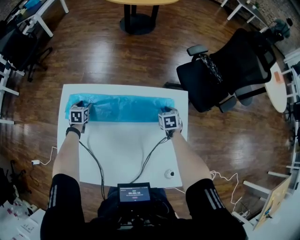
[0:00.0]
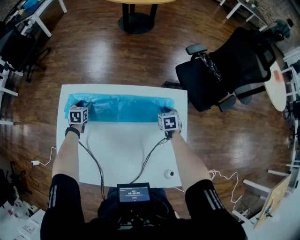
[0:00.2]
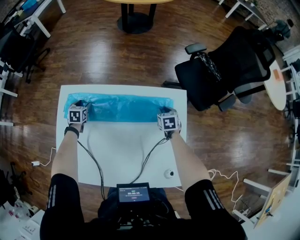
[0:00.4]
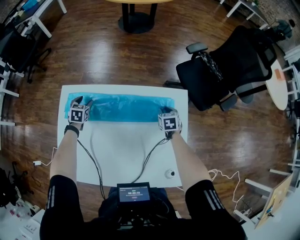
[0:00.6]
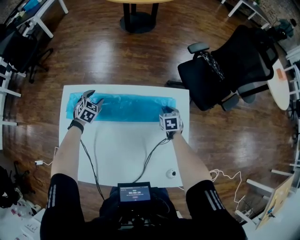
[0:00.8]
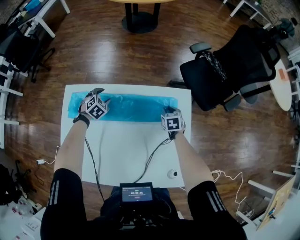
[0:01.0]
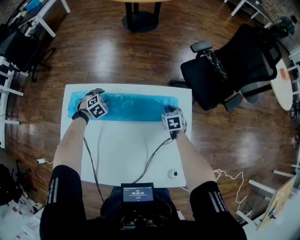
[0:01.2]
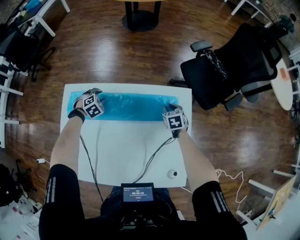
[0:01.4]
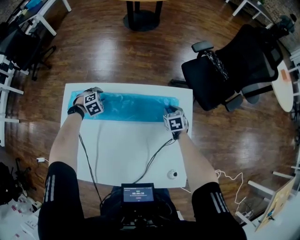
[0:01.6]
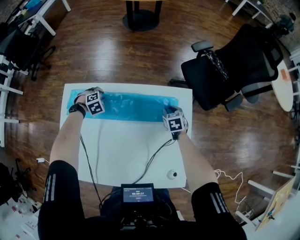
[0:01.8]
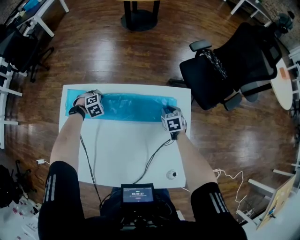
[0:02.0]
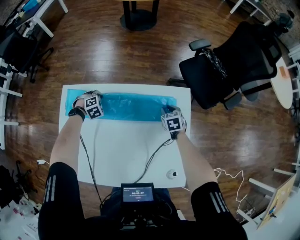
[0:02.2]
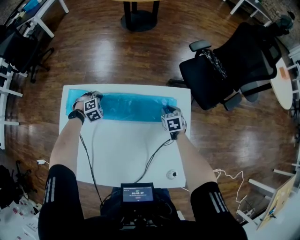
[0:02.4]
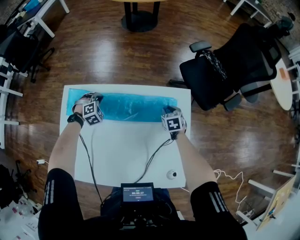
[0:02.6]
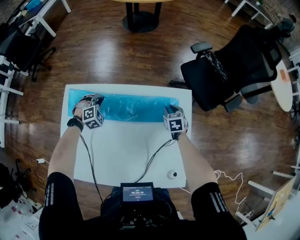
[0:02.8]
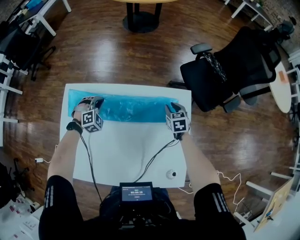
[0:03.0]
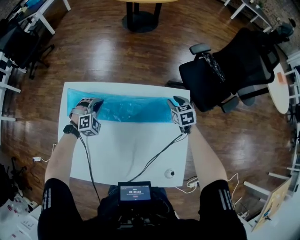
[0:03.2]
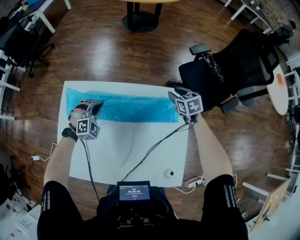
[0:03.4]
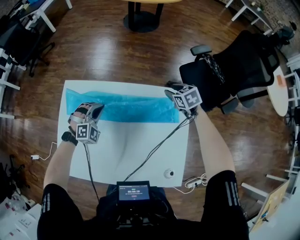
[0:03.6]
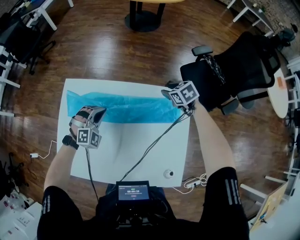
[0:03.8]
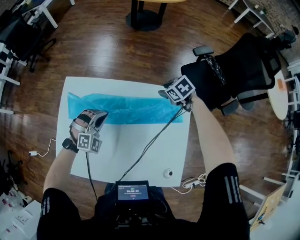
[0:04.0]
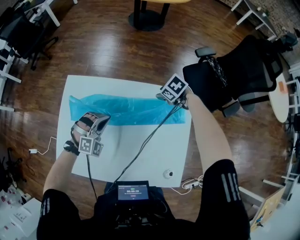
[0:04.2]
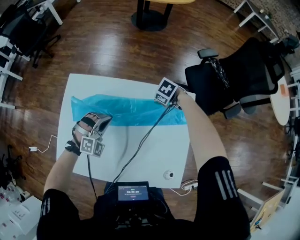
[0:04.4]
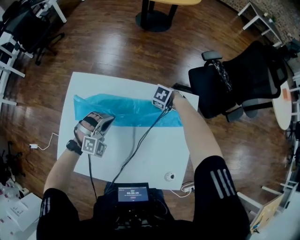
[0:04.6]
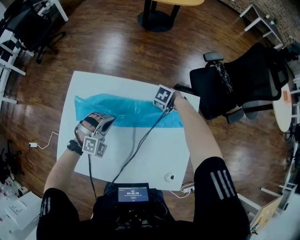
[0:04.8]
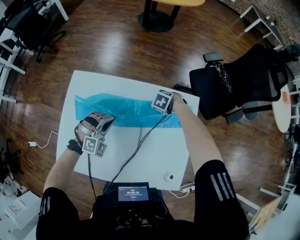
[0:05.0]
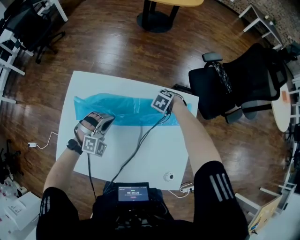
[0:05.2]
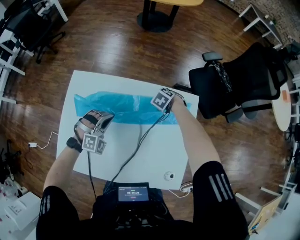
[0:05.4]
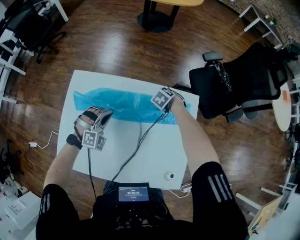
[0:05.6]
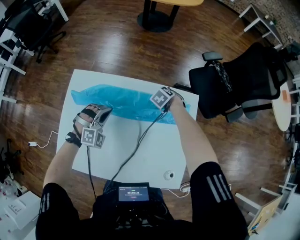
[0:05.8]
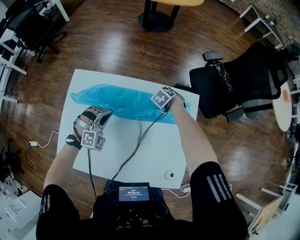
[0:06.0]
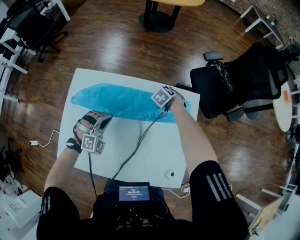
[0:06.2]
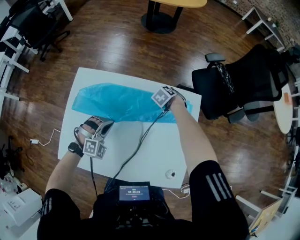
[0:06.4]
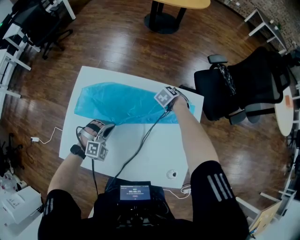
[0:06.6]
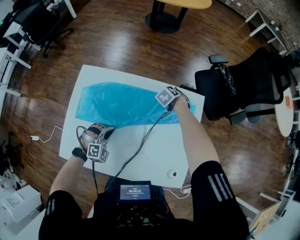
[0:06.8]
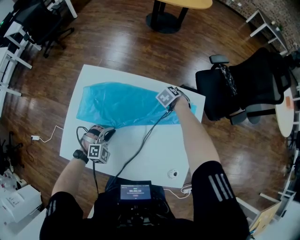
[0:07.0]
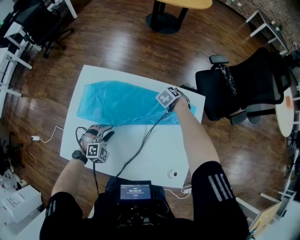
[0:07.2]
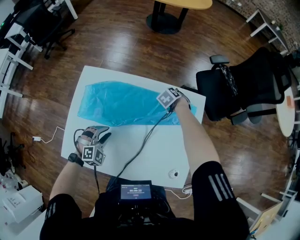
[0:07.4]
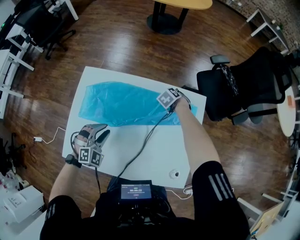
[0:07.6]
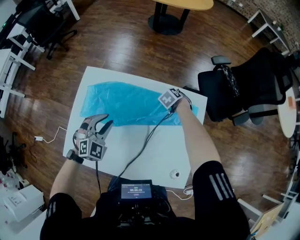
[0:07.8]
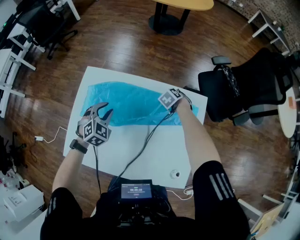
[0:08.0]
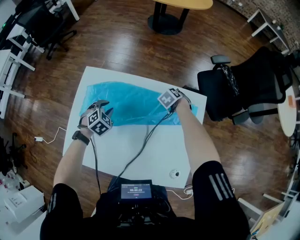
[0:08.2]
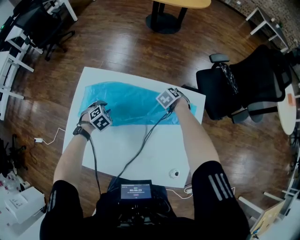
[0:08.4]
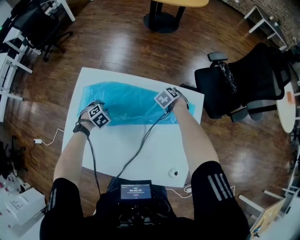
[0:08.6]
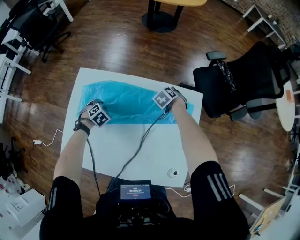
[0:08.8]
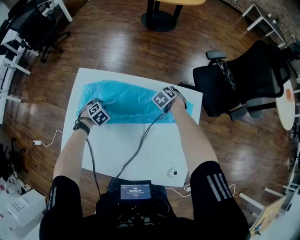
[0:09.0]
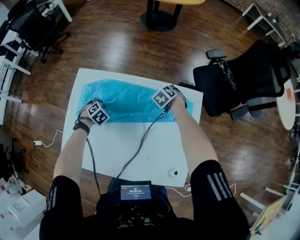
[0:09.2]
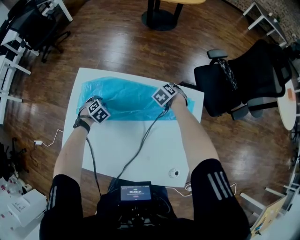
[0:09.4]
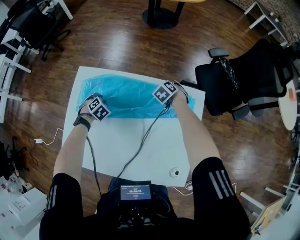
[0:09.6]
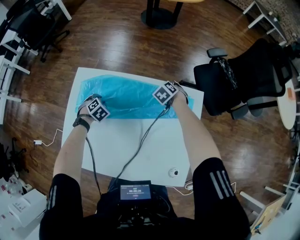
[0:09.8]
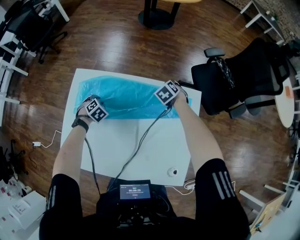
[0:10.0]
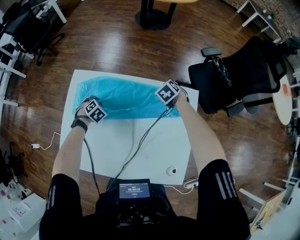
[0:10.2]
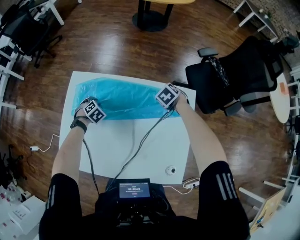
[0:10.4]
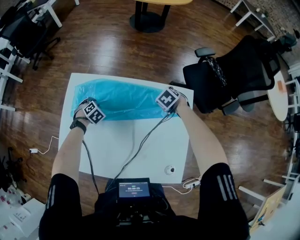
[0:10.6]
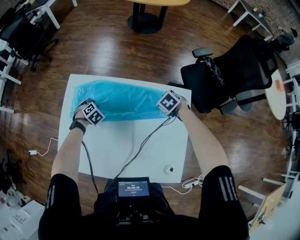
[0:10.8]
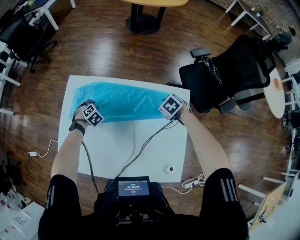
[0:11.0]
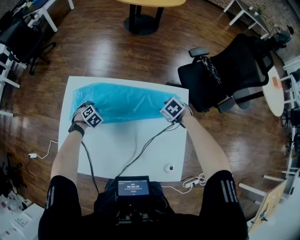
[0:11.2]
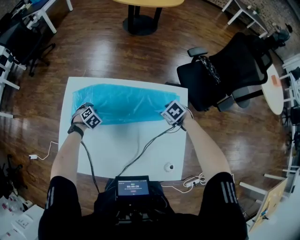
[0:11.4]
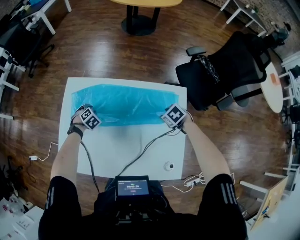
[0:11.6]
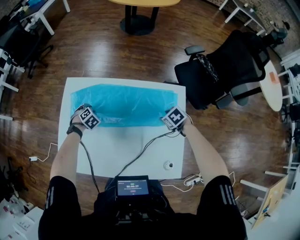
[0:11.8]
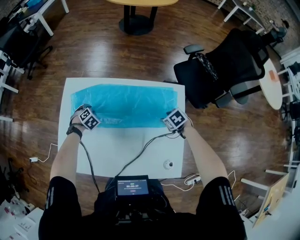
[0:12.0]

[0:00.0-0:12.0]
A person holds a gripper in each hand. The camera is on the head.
0:00.0 to 0:01.6: The left gripper changes place by some 10 cm, and rotates around the line of its fingers by roughly 60 degrees, clockwise from behind.
0:01.6 to 0:03.0: The left gripper shifts about 5 cm upward, swivels approximately 30 degrees, and closes.
0:03.0 to 0:04.4: The right gripper moves approximately 5 cm upward and comes back, and changes its angle by roughly 60 degrees. The left gripper moves about 15 cm.
0:04.4 to 0:06.0: The grippers move only a little.
0:06.0 to 0:07.6: The left gripper travels downward and back again, approximately 5 cm each way, and opens.
0:07.6 to 0:09.0: The left gripper goes about 15 cm downward, and angles its fingers downward, by roughly 30 degrees.
0:09.0 to 0:10.4: The grippers stay close to where they were, moving slightly.
0:10.4 to 0:12.0: The right gripper ends up roughly 20 cm from where it was.

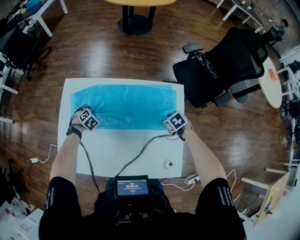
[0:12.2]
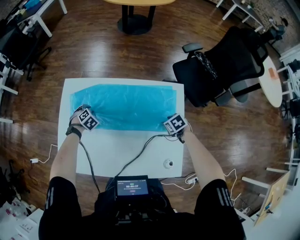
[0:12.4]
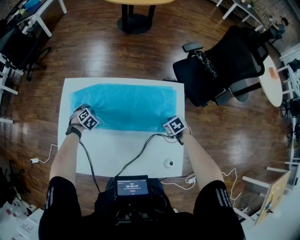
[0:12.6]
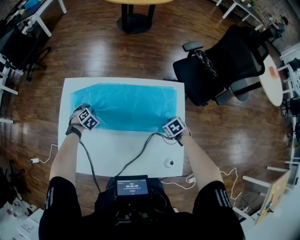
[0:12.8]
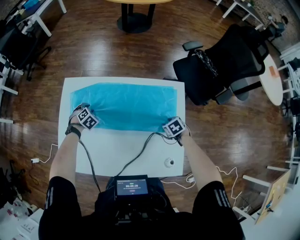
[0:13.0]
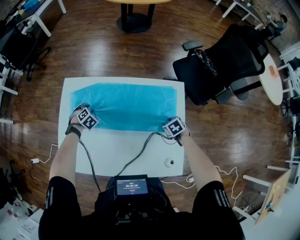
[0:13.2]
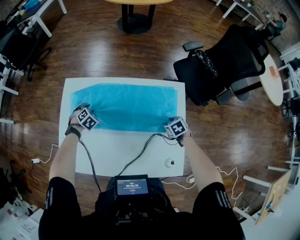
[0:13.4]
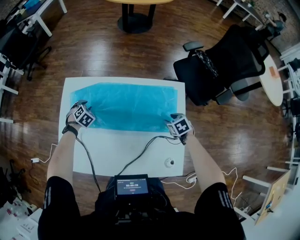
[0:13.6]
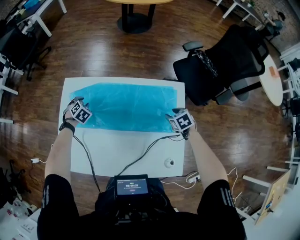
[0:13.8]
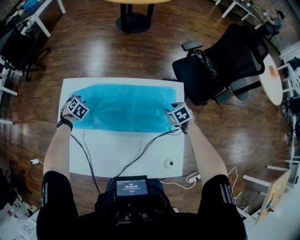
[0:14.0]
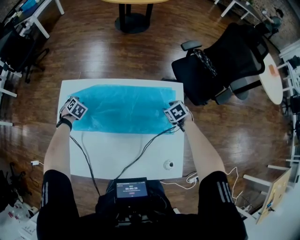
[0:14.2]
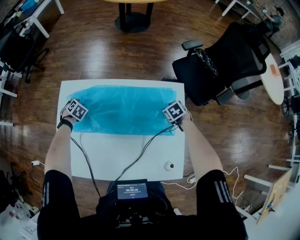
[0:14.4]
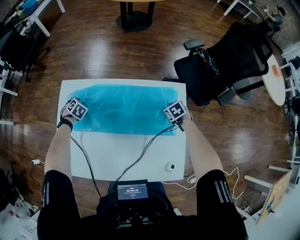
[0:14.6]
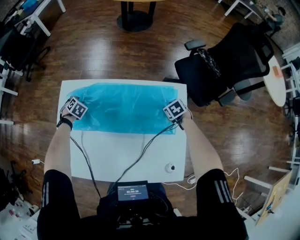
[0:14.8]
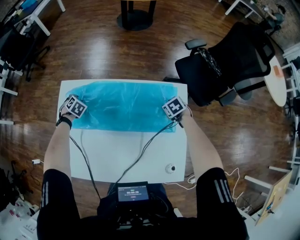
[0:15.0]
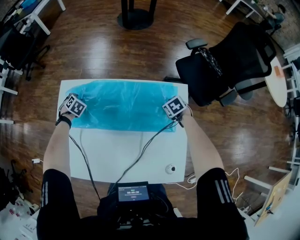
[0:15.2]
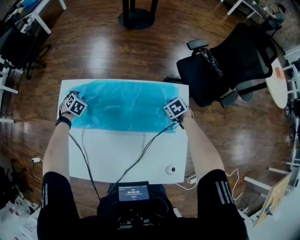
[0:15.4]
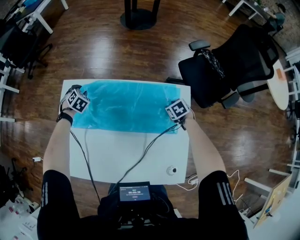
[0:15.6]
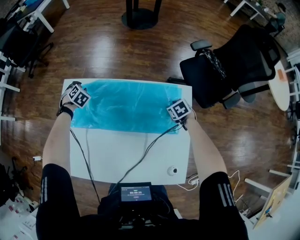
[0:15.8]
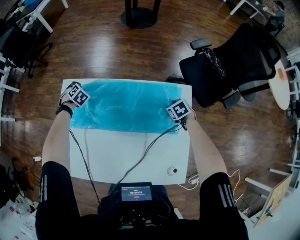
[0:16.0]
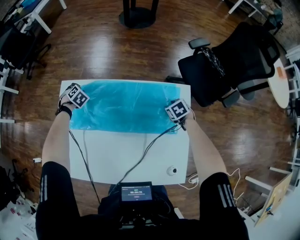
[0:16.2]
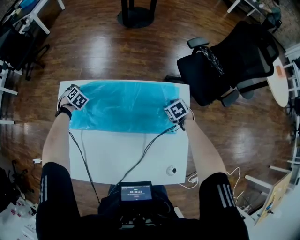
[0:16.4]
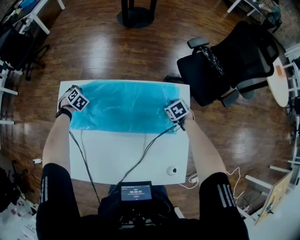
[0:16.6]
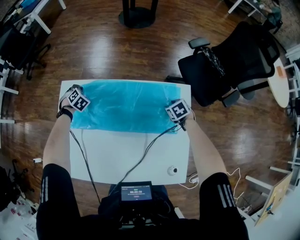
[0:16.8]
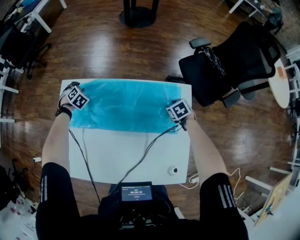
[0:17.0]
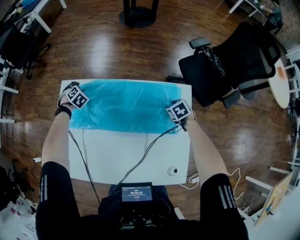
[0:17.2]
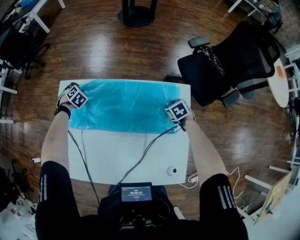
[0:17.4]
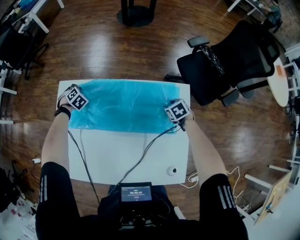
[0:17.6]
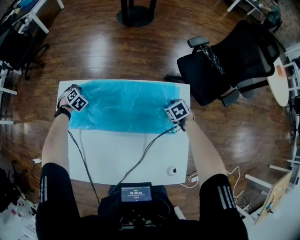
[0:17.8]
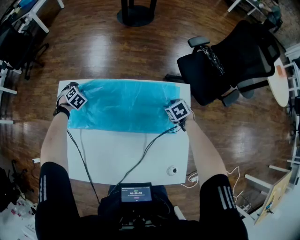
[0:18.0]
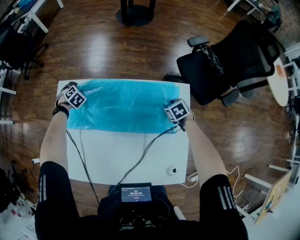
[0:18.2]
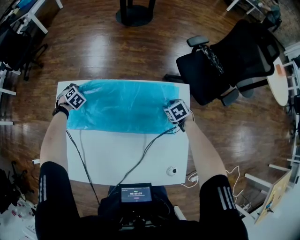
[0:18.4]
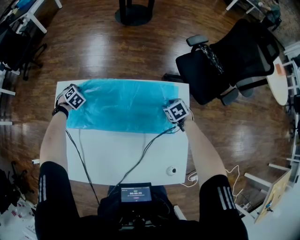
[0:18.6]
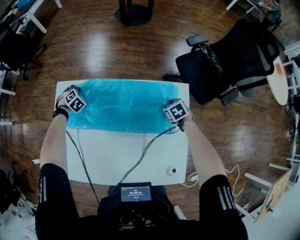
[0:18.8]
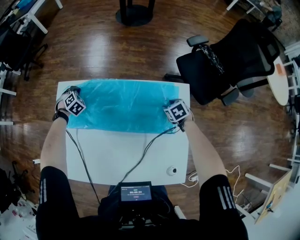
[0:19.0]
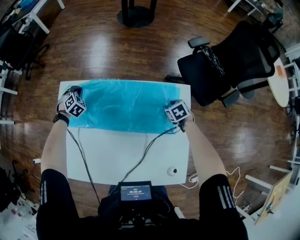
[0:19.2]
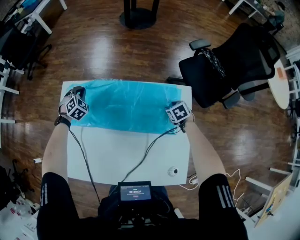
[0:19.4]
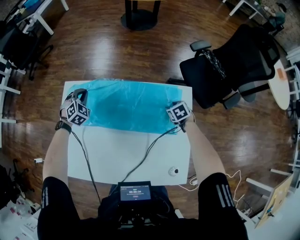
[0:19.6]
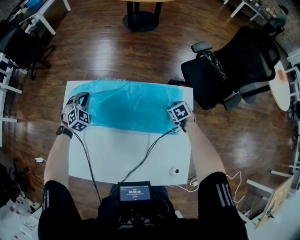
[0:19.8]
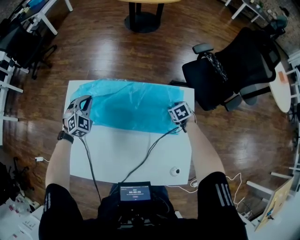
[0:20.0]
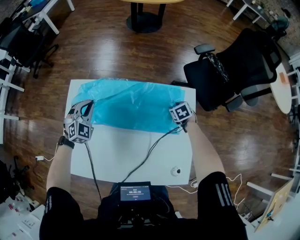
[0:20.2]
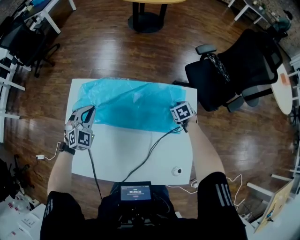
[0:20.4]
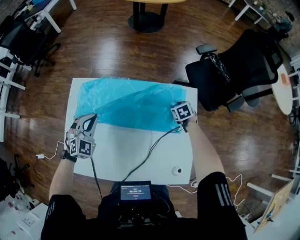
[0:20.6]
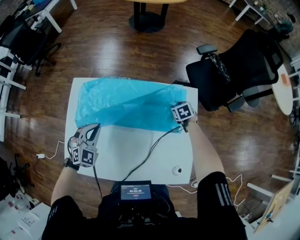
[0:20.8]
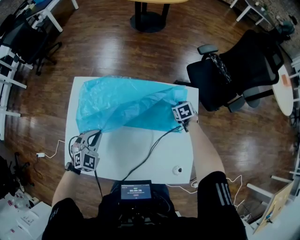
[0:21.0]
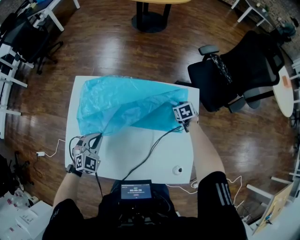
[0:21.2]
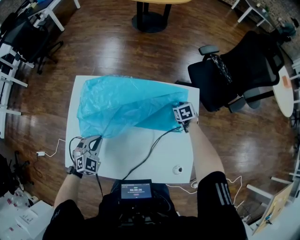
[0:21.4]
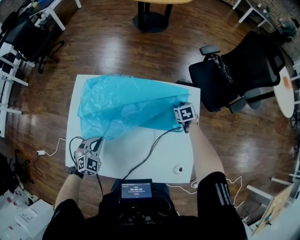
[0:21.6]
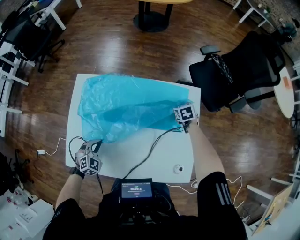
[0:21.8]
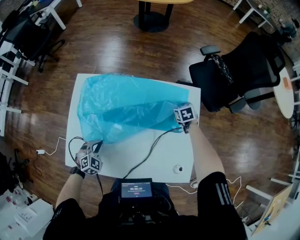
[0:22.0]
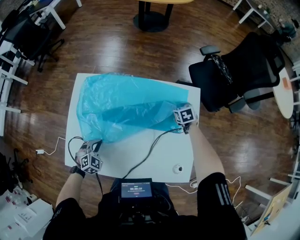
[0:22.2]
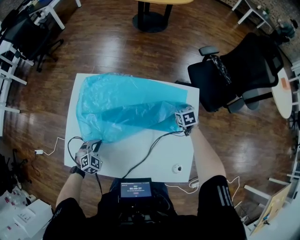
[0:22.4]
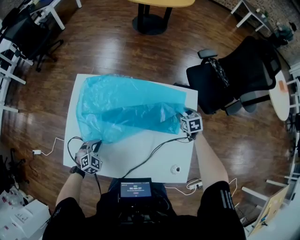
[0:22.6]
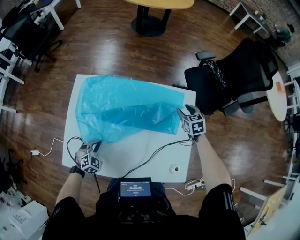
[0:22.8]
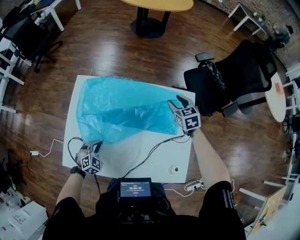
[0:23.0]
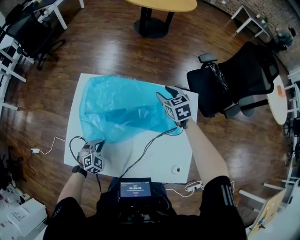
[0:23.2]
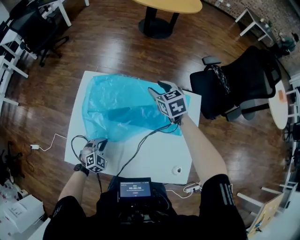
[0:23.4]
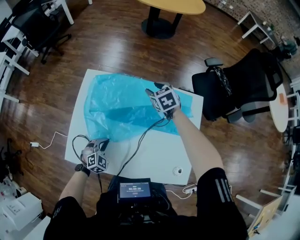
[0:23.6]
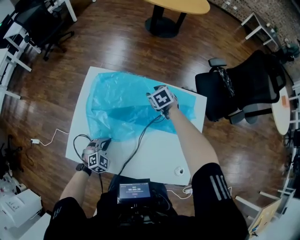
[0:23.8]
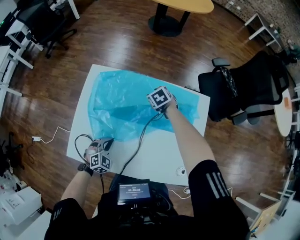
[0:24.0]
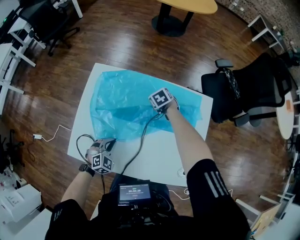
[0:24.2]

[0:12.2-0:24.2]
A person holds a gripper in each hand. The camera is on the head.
0:12.2 to 0:13.8: The left gripper shifts by roughly 5 cm.
0:13.8 to 0:15.2: The right gripper is displaced forward and downward by approximately 10 cm. The left gripper heads forward, covering roughly 5 cm.
0:15.2 to 0:16.6: The left gripper changes place by some 5 cm, and closes up.
0:16.6 to 0:18.2: The left gripper opens up.
0:18.2 to 0:19.8: The left gripper moves upward and backward, about 15 cm, rotates roughly 30 degrees, and closes up.
0:19.8 to 0:21.2: The left gripper goes approximately 25 cm backward.
0:21.2 to 0:22.6: The left gripper heads downward and backward, covering about 10 cm, while the right gripper changes place by approximately 5 cm.
0:22.6 to 0:24.2: The right gripper moves to the left, some 25 cm, and rotates roughly 30 degrees.
